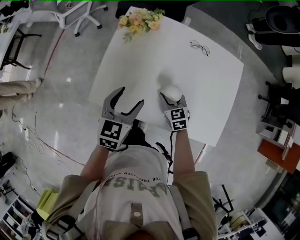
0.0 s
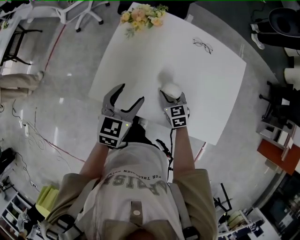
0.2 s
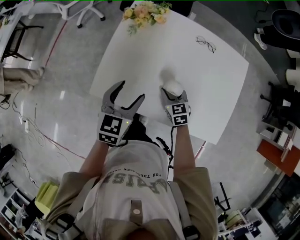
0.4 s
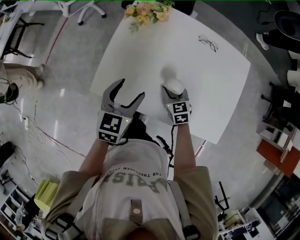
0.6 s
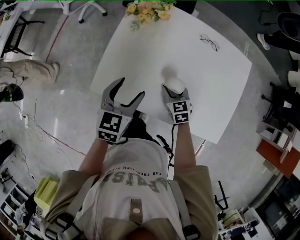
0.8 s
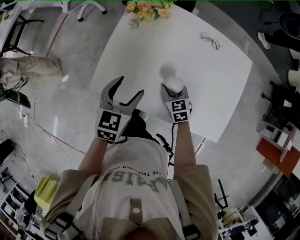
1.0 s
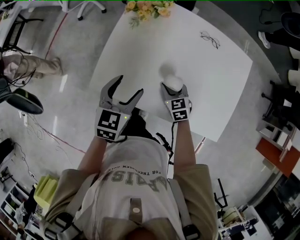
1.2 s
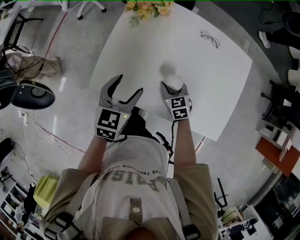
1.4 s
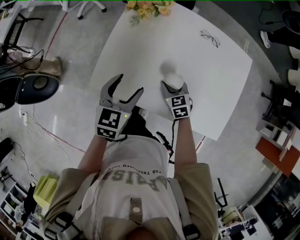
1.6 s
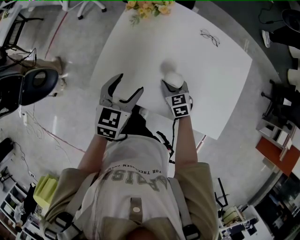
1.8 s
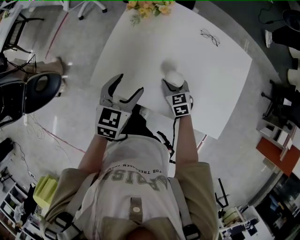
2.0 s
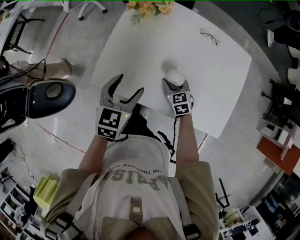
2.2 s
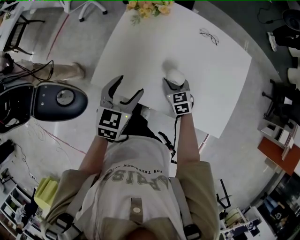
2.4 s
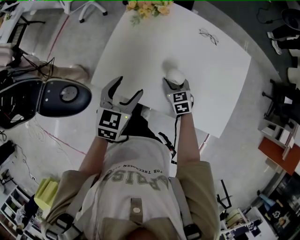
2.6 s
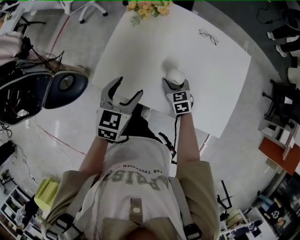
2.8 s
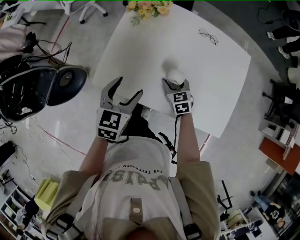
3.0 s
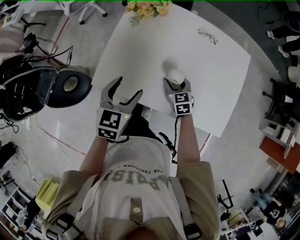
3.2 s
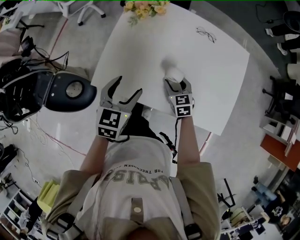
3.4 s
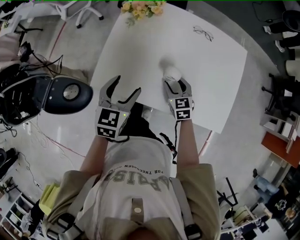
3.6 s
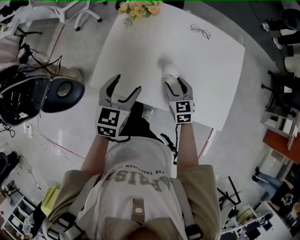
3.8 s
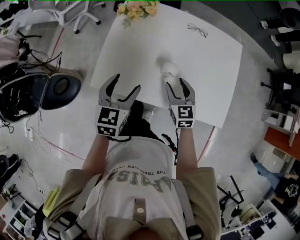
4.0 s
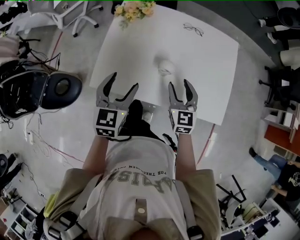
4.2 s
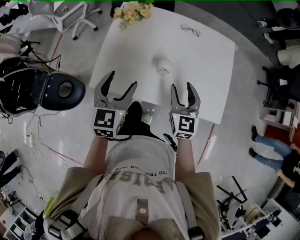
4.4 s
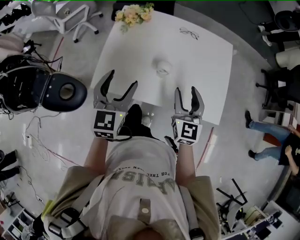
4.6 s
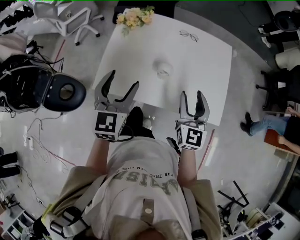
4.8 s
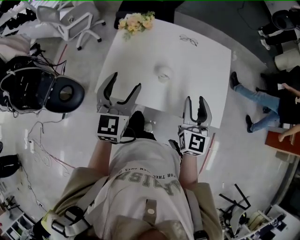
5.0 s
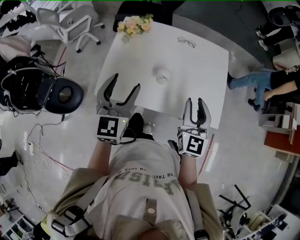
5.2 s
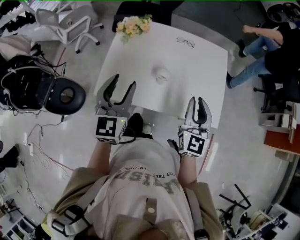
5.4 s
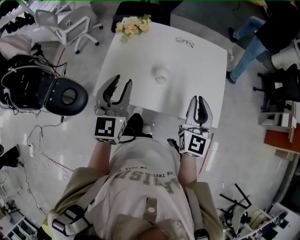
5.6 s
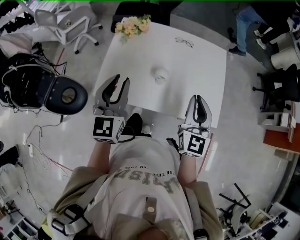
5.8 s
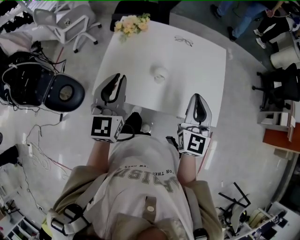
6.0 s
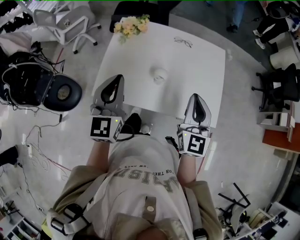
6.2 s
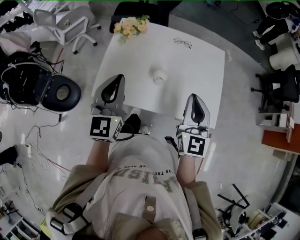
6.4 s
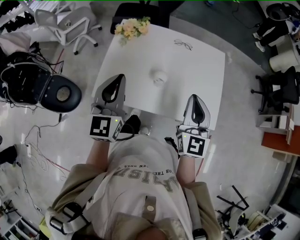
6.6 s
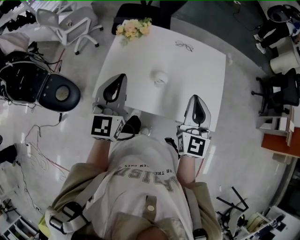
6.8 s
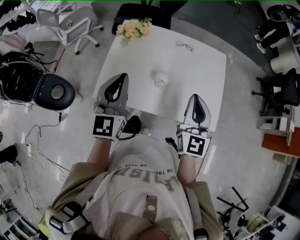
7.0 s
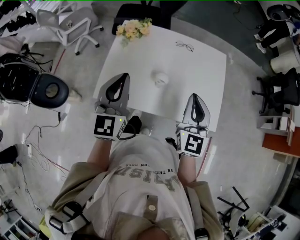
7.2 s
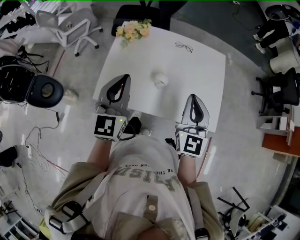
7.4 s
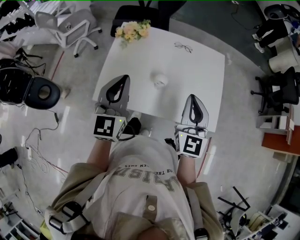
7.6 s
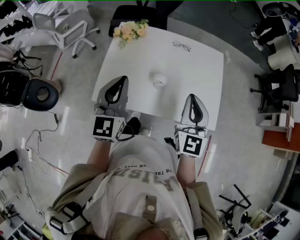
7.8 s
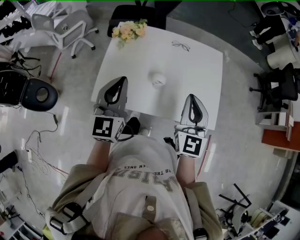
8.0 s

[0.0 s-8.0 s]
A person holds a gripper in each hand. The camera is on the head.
0.0 to 3.2 s: The grippers stay close to where they were, moving slightly.
3.2 to 4.8 s: The left gripper moves upward, some 10 cm, and swivels about 20 degrees; the right gripper heads upward, backward and to the right, covering about 30 cm, and tilts its fingers about 30 degrees upward.
4.8 to 6.4 s: The two grippers go about 5 cm upward. The right gripper closes. Meanwhile the left gripper closes up.
6.4 to 8.0 s: The grippers stay close to where they were, moving slightly.

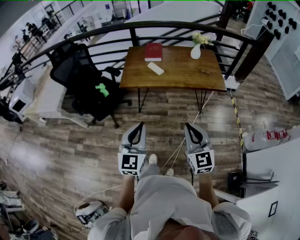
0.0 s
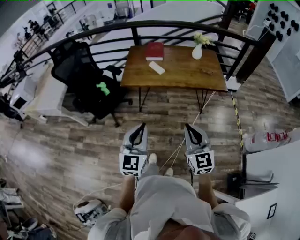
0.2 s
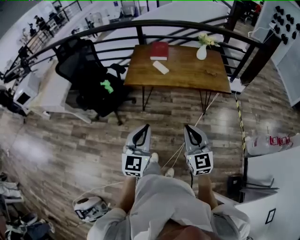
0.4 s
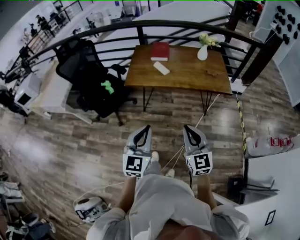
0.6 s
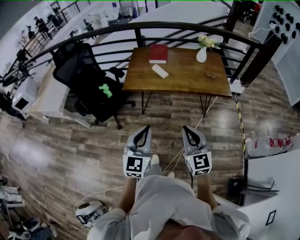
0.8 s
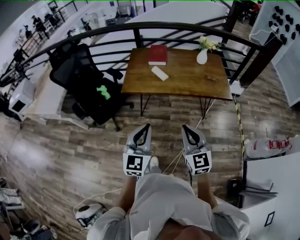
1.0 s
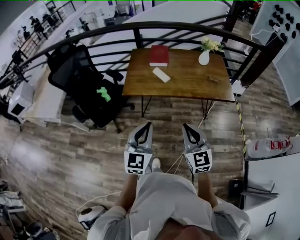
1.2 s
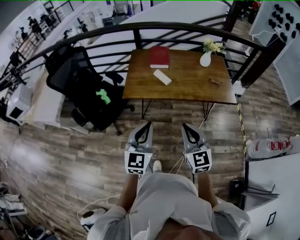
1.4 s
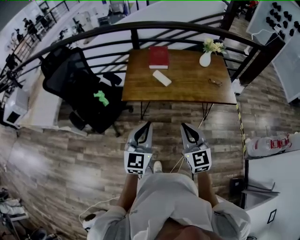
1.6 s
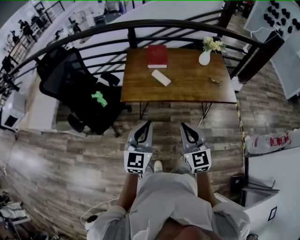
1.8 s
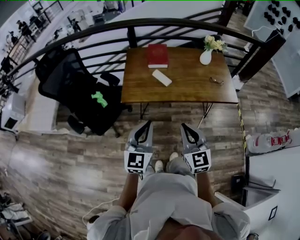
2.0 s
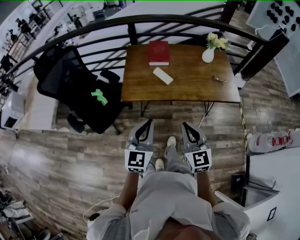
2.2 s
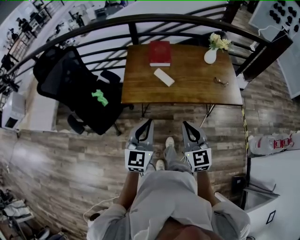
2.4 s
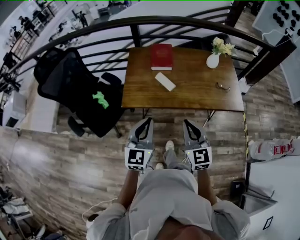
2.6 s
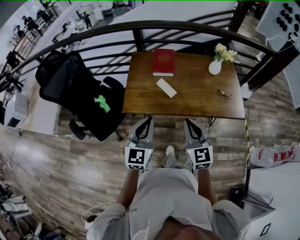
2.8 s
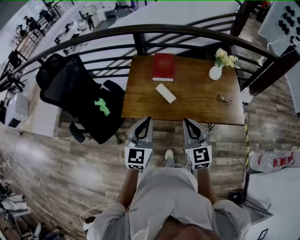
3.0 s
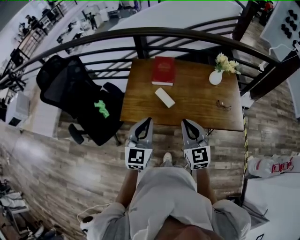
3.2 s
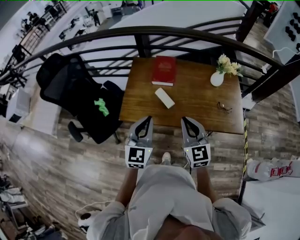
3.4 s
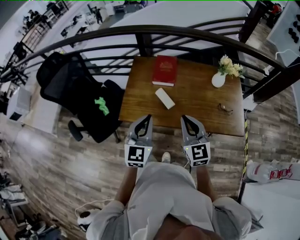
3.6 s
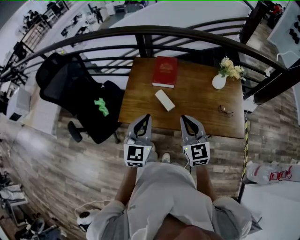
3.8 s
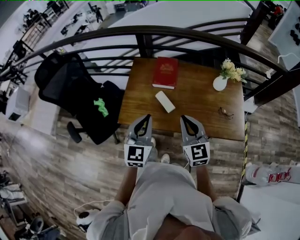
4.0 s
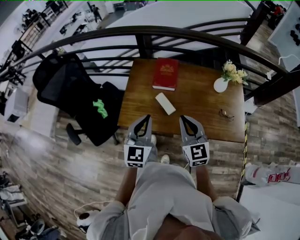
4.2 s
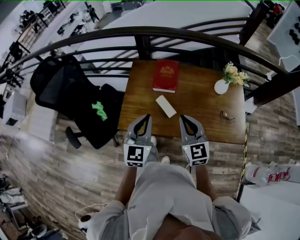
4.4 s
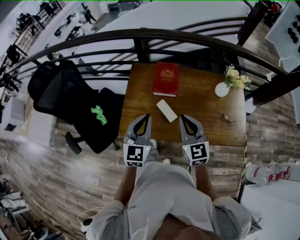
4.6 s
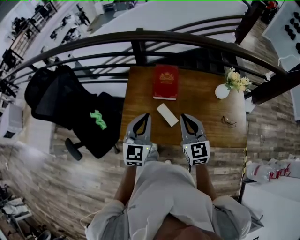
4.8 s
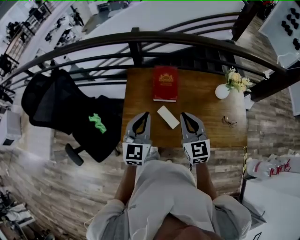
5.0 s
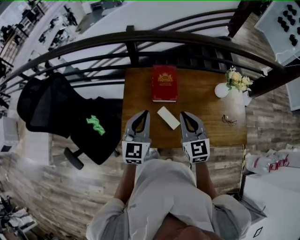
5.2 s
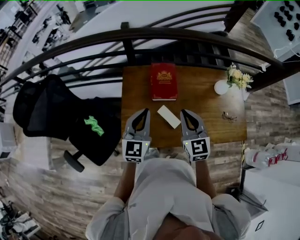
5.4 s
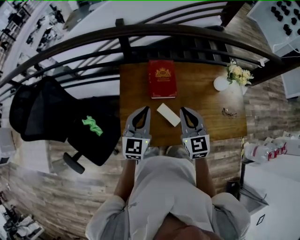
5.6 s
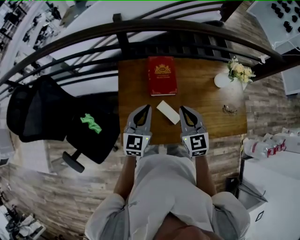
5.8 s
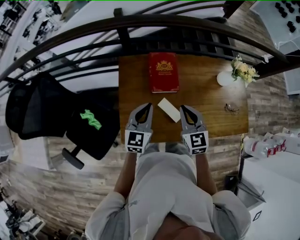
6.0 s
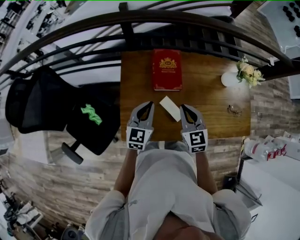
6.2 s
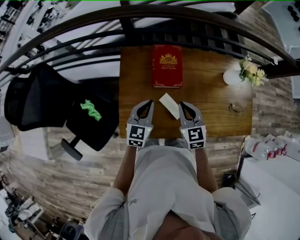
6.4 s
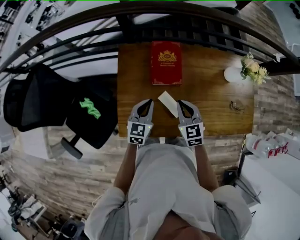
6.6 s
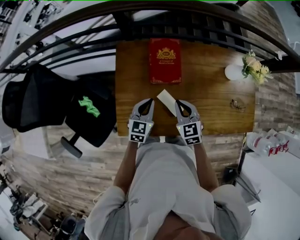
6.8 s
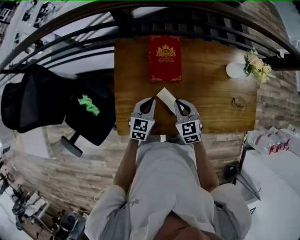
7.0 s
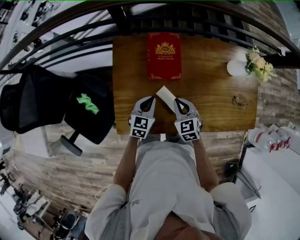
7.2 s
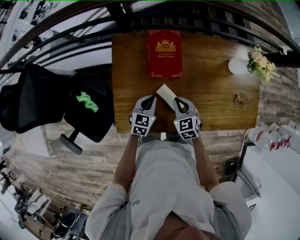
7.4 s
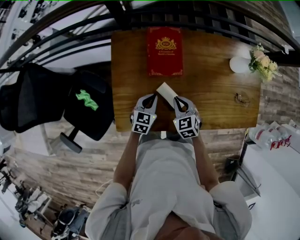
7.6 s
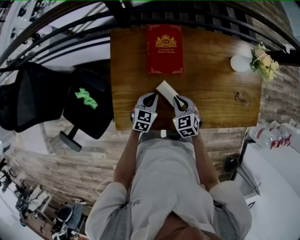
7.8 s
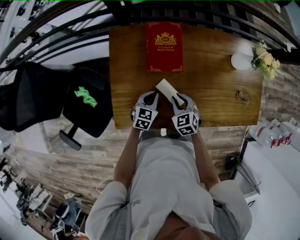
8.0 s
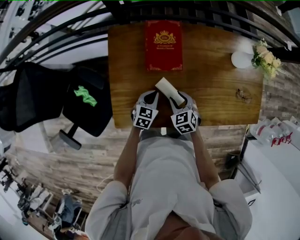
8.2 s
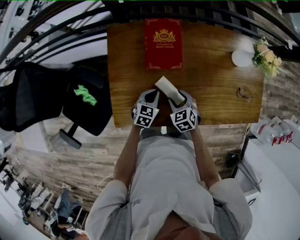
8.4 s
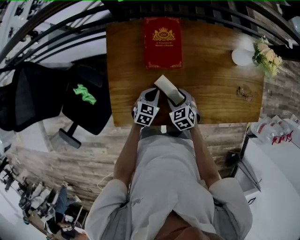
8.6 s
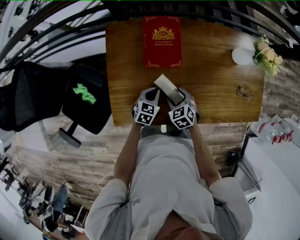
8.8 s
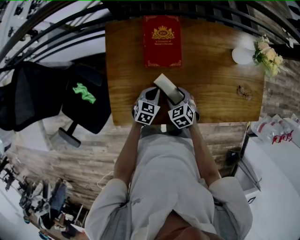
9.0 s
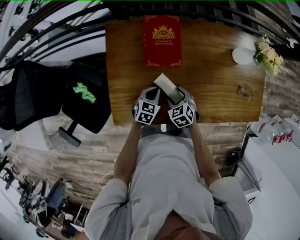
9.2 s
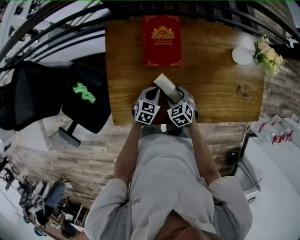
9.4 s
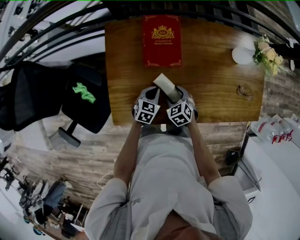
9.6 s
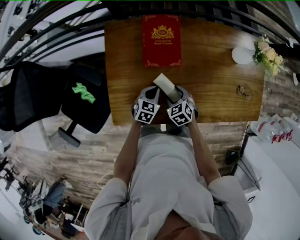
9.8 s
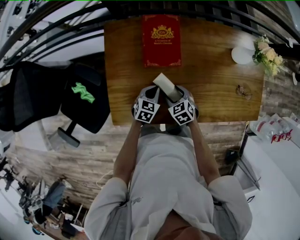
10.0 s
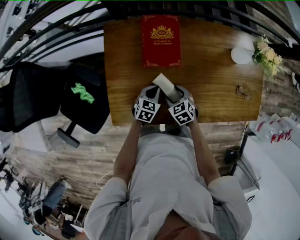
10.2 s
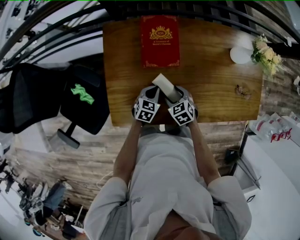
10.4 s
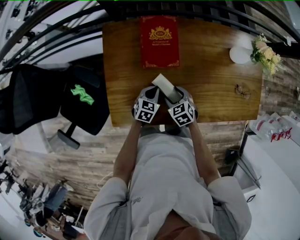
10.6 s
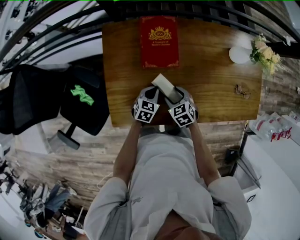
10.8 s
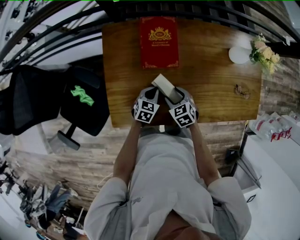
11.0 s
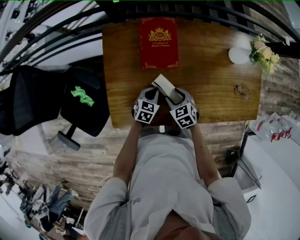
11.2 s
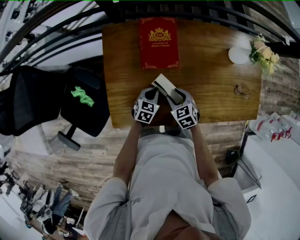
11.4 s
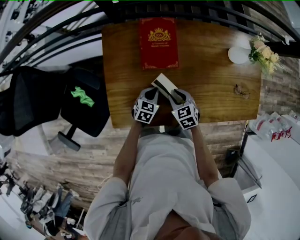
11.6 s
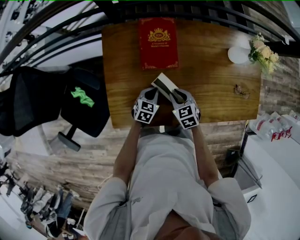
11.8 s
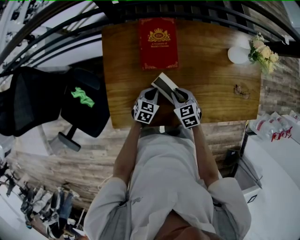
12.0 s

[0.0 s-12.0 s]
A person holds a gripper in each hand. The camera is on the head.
0.0 to 1.6 s: The left gripper shifts some 20 cm forward. The right gripper travels forward and to the left by roughly 20 cm.
1.6 to 3.0 s: Both grippers travel together forward, some 20 cm.
3.0 to 4.4 s: The two grippers go roughly 15 cm forward.
4.4 to 6.0 s: Both grippers move forward and downward, roughly 20 cm.
6.0 to 7.6 s: Both grippers move downward, some 20 cm. The left gripper changes its angle by some 20 degrees, while the right gripper changes its angle by approximately 20 degrees.
7.6 to 9.0 s: The grippers both shift downward by roughly 5 cm. The right gripper opens.
9.0 to 10.4 s: The grippers move only a little.
10.4 to 12.0 s: The right gripper changes place by roughly 5 cm, and closes its fingers.

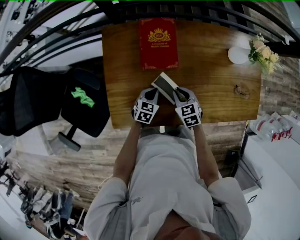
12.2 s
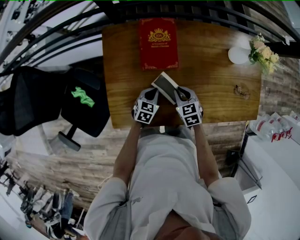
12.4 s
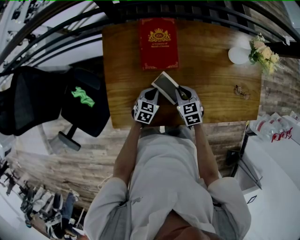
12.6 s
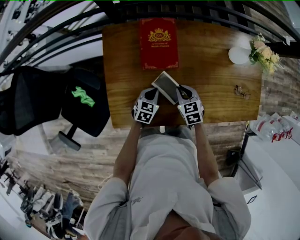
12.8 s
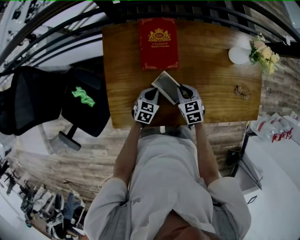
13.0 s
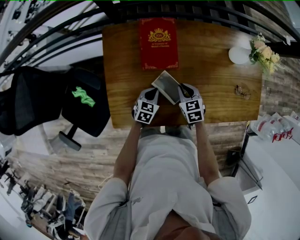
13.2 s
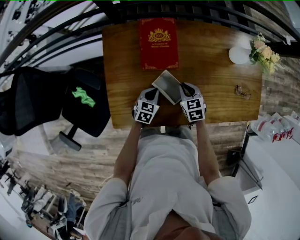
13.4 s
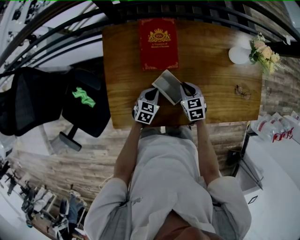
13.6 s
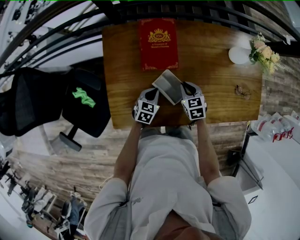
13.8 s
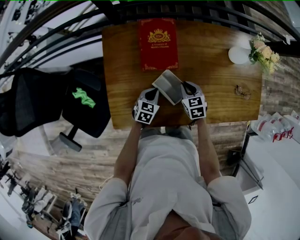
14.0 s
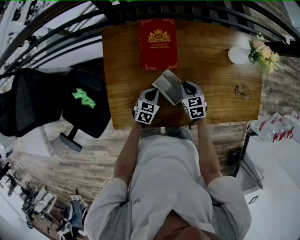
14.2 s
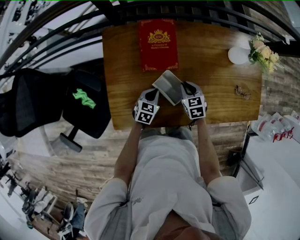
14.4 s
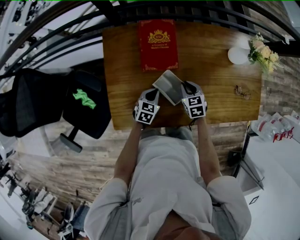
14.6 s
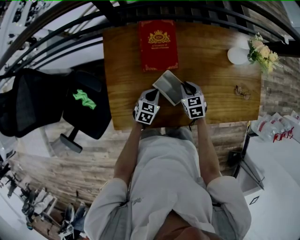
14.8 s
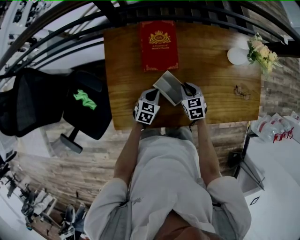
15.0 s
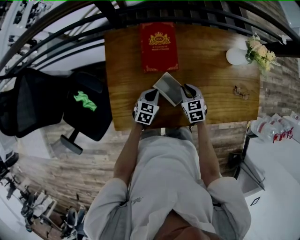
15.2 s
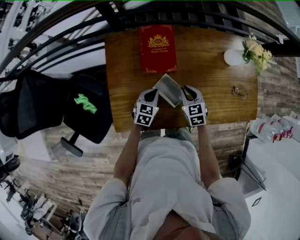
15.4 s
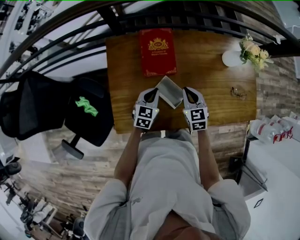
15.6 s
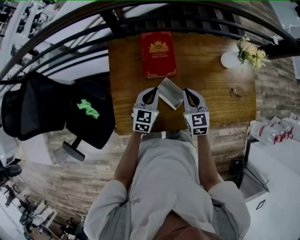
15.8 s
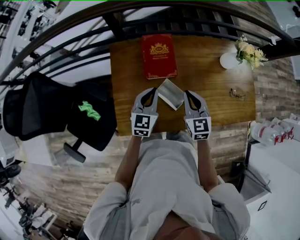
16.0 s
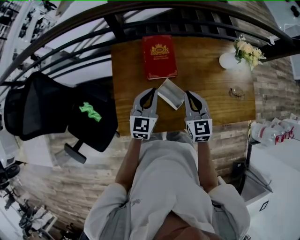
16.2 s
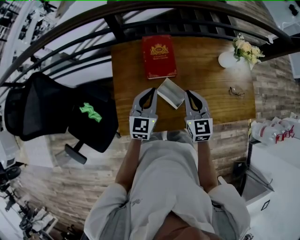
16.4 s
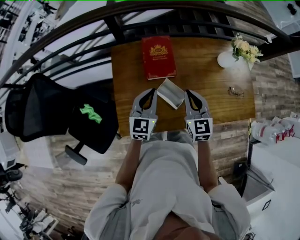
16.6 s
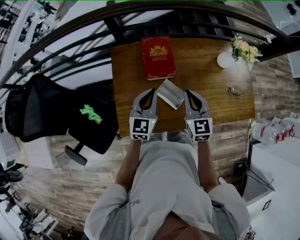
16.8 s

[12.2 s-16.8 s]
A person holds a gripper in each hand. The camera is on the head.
12.2 to 13.8 s: The right gripper ends up approximately 5 cm from where it was.
13.8 to 15.2 s: The grippers make only small movements.
15.2 to 16.8 s: The two grippers go about 20 cm upward. The left gripper points its fingers approximately 30 degrees further upward. Meanwhile the right gripper changes its angle by approximately 30 degrees.
